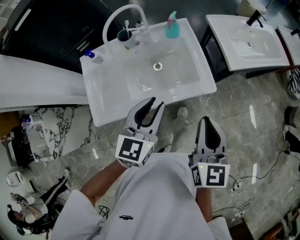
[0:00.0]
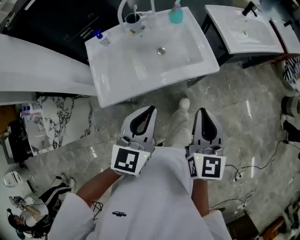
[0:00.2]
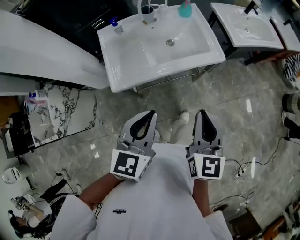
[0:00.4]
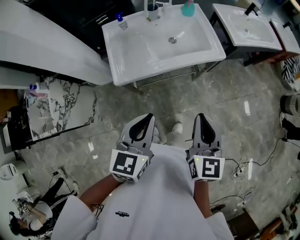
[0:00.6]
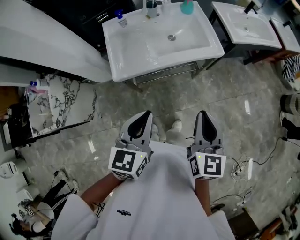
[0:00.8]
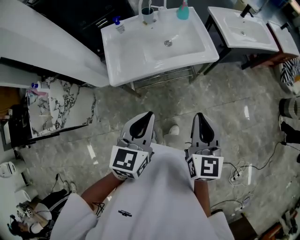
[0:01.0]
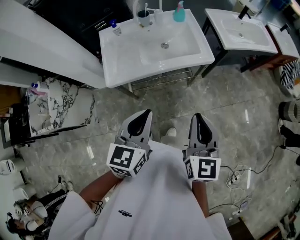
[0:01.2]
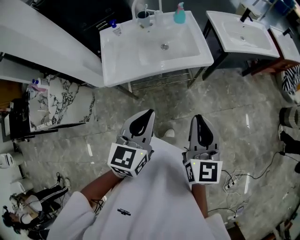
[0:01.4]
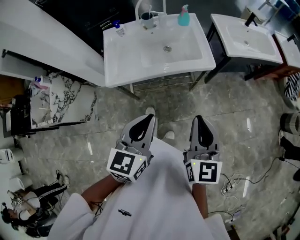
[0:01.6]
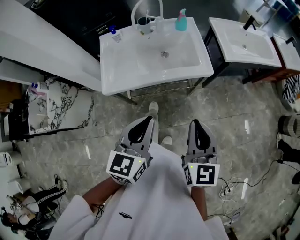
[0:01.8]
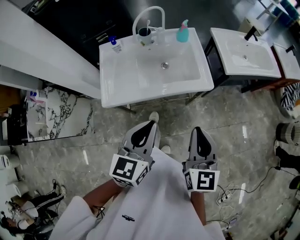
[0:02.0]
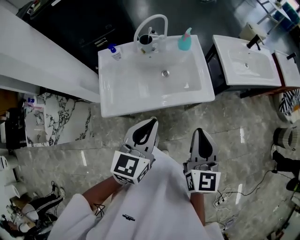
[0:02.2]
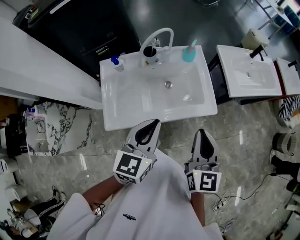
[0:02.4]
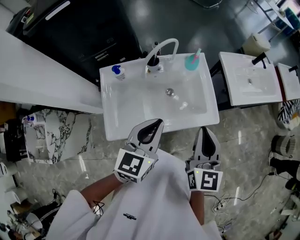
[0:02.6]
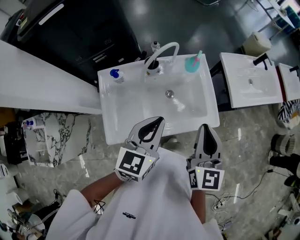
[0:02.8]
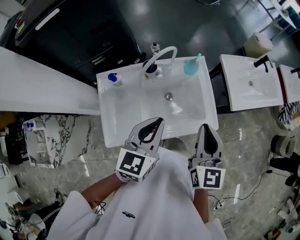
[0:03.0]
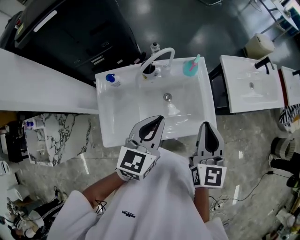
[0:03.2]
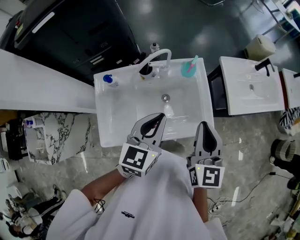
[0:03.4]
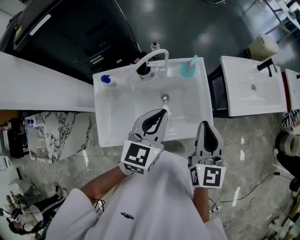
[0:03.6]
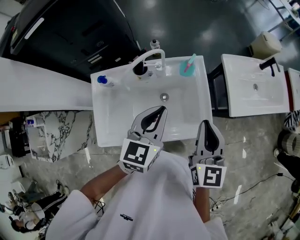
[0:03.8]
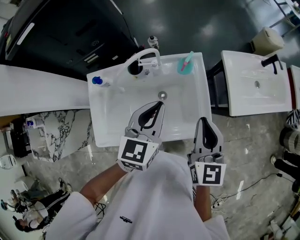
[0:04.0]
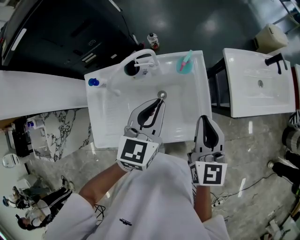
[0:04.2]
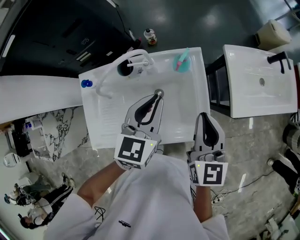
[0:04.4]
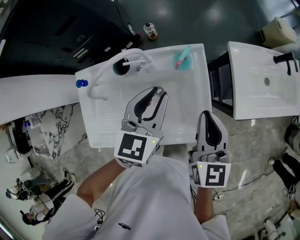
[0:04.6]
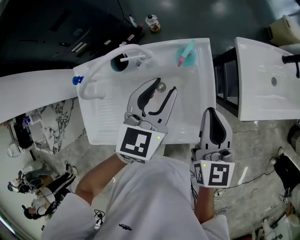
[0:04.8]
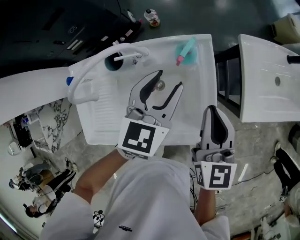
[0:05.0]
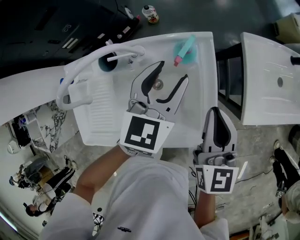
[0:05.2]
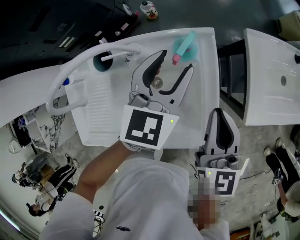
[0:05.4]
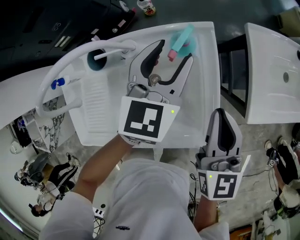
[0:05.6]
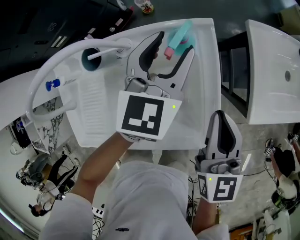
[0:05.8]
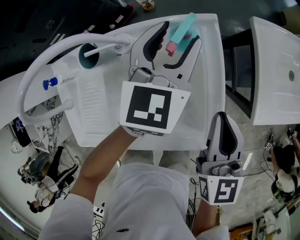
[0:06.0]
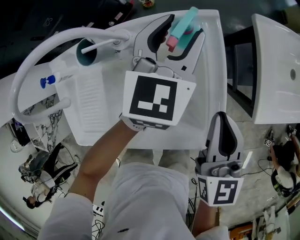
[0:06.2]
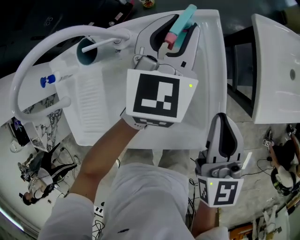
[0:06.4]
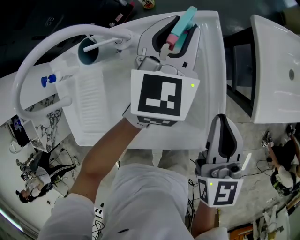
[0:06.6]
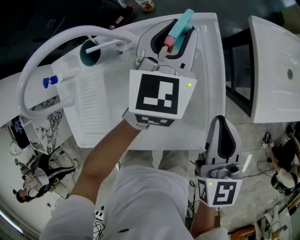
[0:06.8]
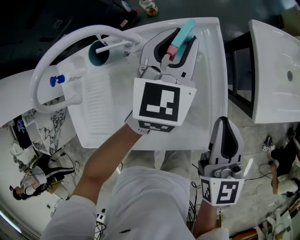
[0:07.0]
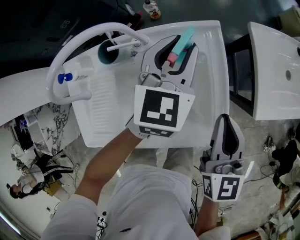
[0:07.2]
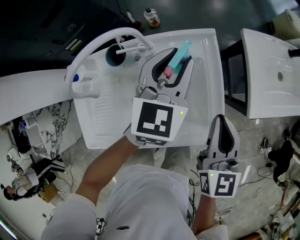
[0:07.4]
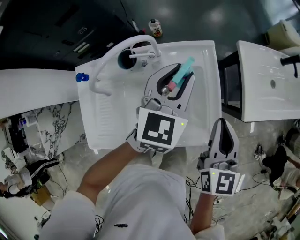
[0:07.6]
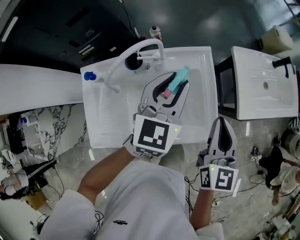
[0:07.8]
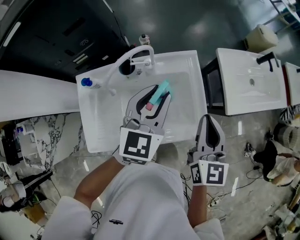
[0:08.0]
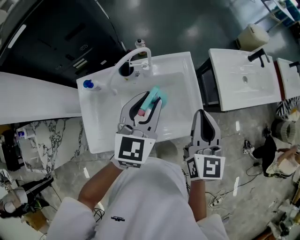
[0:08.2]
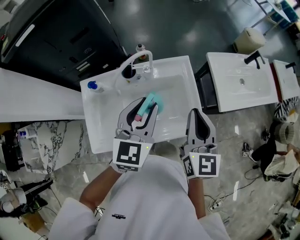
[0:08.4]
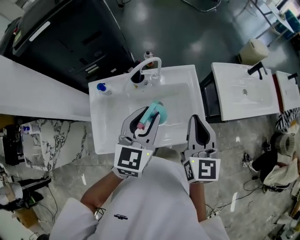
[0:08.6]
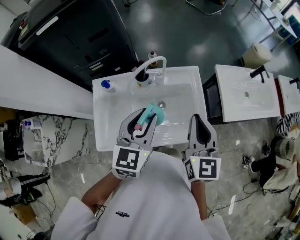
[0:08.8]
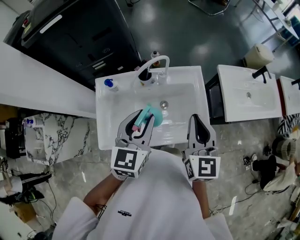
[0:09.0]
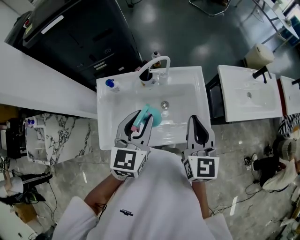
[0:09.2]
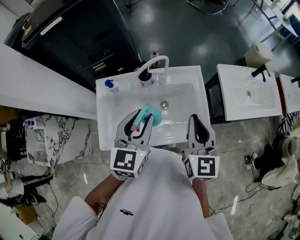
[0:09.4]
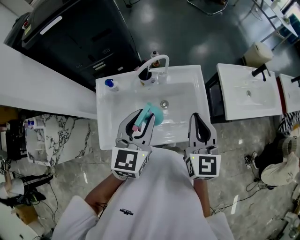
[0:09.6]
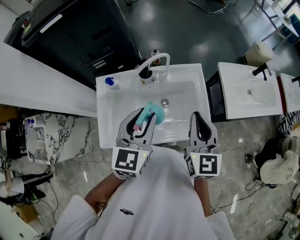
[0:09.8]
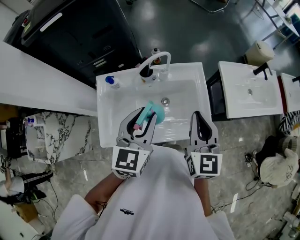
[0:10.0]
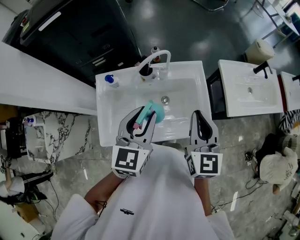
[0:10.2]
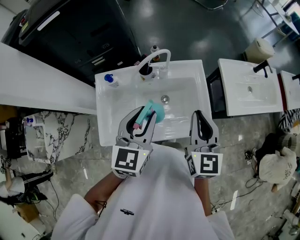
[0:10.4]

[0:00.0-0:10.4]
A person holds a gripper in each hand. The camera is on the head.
0:00.0 to 0:01.4: The two grippers go approximately 25 cm backward. The left gripper closes its fingers.
0:01.4 to 0:03.0: Both grippers move forward, approximately 35 cm.
0:03.0 to 0:04.4: The right gripper shifts some 20 cm forward, to the right and downward. Meanwhile the left gripper goes about 20 cm forward and to the right.
0:04.4 to 0:06.0: The left gripper moves forward and downward, about 20 cm, and opens its fingers. The right gripper heads downward, covering about 15 cm.
0:06.0 to 0:07.4: The right gripper shifts by about 5 cm, while the left gripper is displaced backward by some 5 cm, and closes its fingers.
0:07.4 to 0:09.0: The right gripper travels upward, to the left and backward by approximately 20 cm, while the left gripper goes approximately 30 cm backward, upward and to the left.
0:09.0 to 0:10.4: Neither gripper changes place.

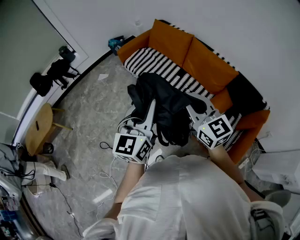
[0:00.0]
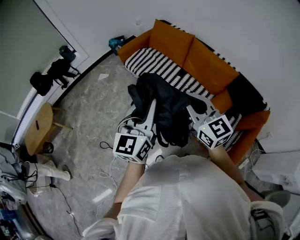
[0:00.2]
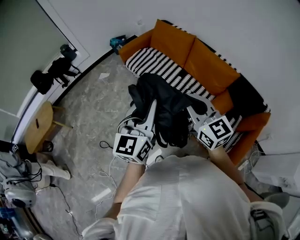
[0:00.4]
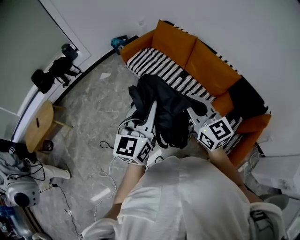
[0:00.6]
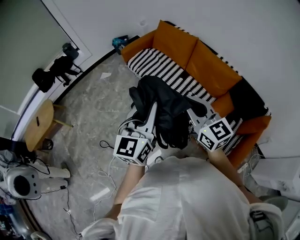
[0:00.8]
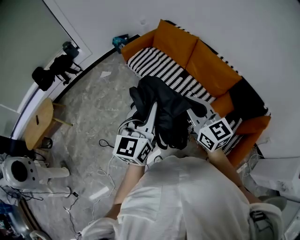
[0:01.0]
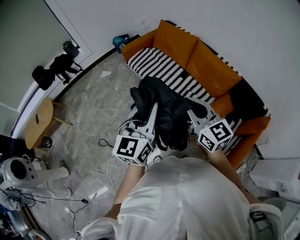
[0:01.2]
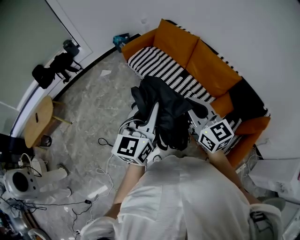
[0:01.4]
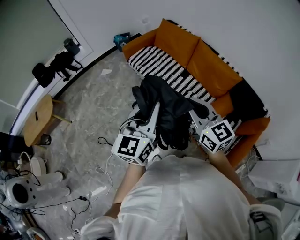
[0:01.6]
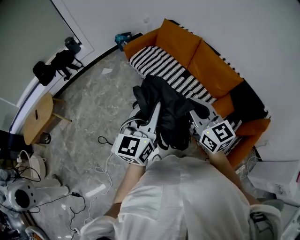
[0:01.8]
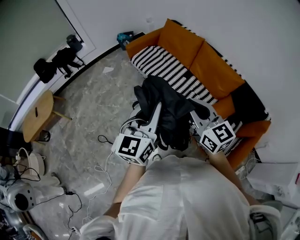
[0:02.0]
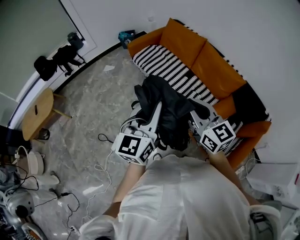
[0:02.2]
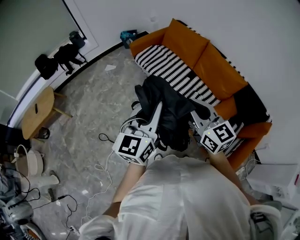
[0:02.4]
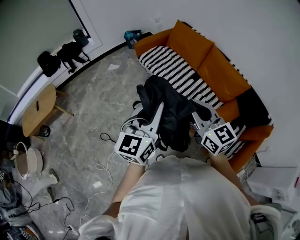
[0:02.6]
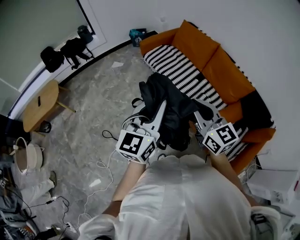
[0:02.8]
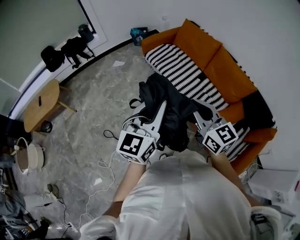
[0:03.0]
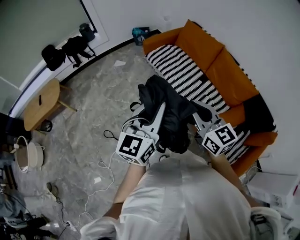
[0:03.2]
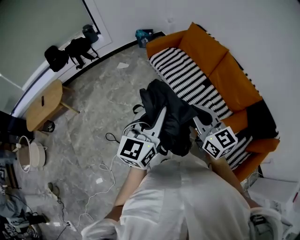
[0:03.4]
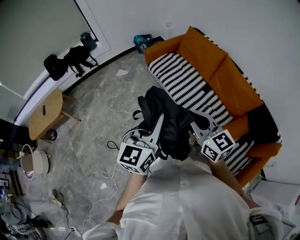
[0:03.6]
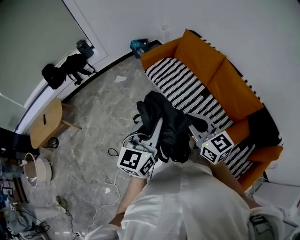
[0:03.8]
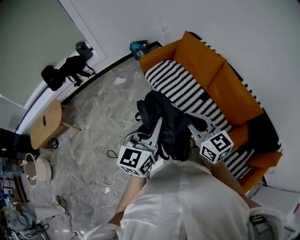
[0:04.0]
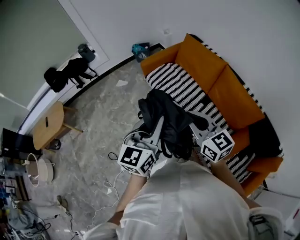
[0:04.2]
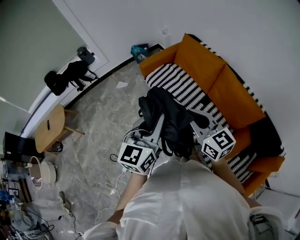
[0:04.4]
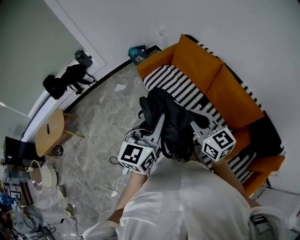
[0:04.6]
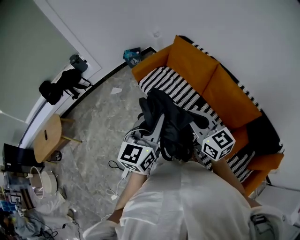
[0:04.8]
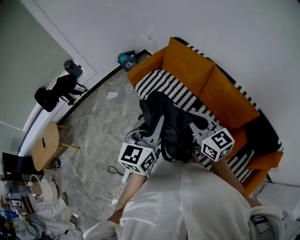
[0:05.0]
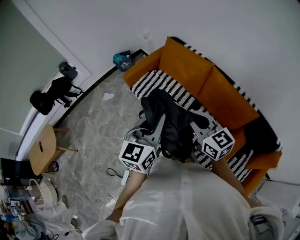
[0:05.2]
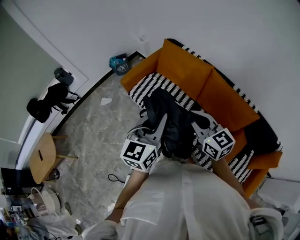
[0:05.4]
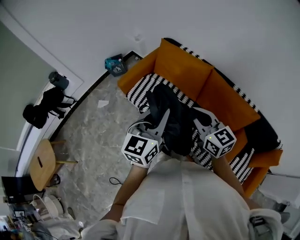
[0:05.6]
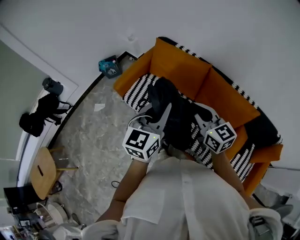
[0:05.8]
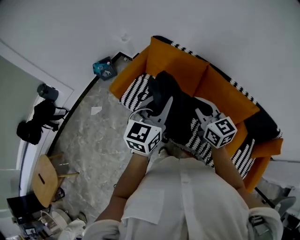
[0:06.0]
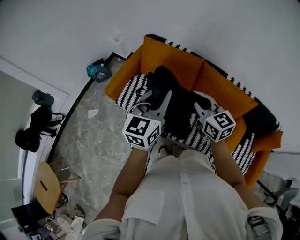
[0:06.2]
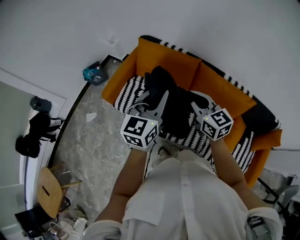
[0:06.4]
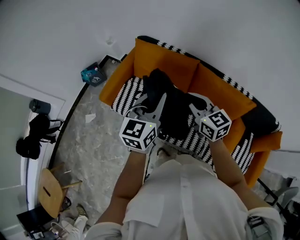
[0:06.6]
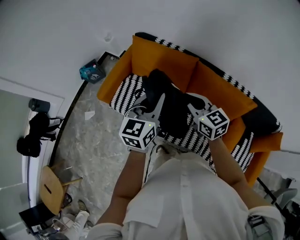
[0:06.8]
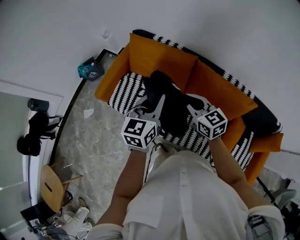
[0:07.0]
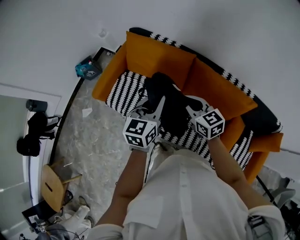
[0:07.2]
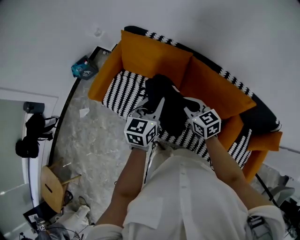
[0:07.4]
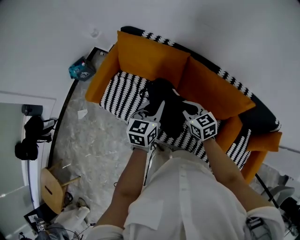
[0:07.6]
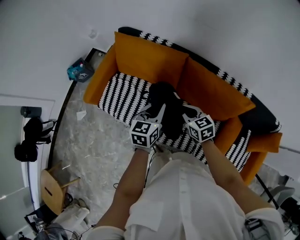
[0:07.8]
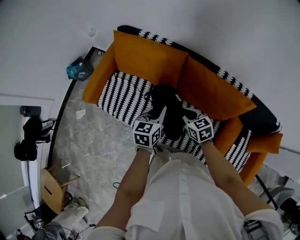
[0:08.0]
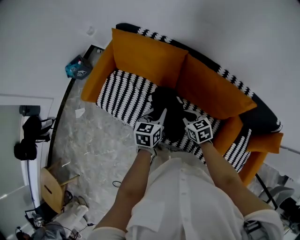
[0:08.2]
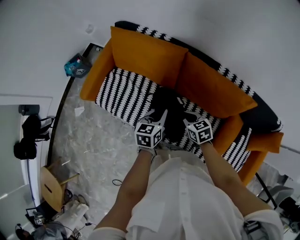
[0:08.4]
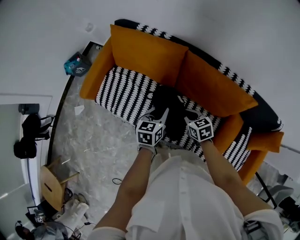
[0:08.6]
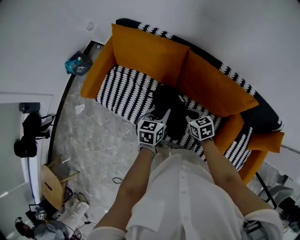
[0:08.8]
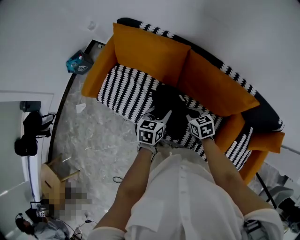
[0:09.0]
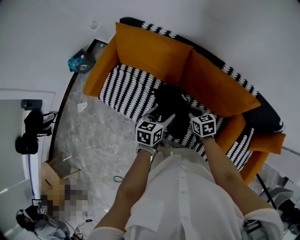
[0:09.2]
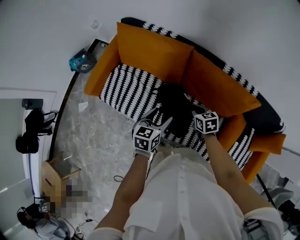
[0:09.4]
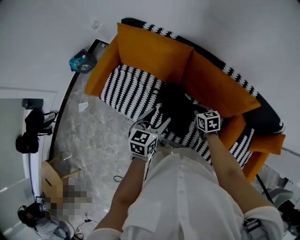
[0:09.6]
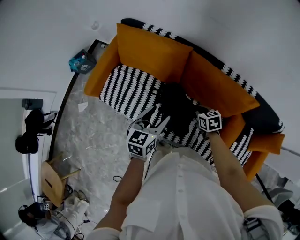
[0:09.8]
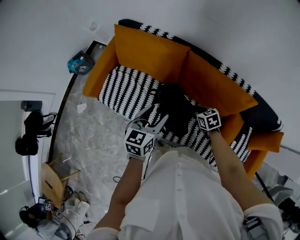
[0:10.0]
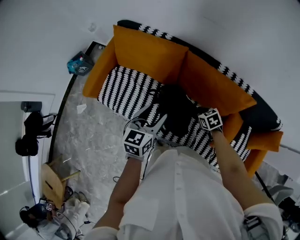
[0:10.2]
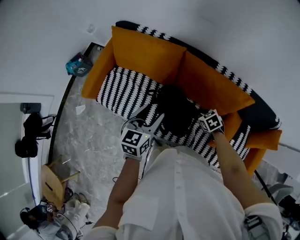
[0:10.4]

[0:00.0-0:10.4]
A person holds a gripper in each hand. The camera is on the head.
0:00.0 to 0:01.4: The grippers move only a little.
0:01.4 to 0:03.0: The grippers both shift to the left by some 10 cm.
0:03.0 to 0:04.4: The two grippers go roughly 25 cm forward and to the right.
0:04.4 to 0:06.0: The right gripper ends up approximately 25 cm from where it was, and turns by roughly 30 degrees. Meanwhile the left gripper changes place by approximately 30 cm, and turns by some 30 degrees.
0:06.0 to 0:07.4: The grippers both shift downward, forward and to the right by about 20 cm.
0:07.4 to 0:09.0: Both grippers travel together downward, some 15 cm. The right gripper swivels some 20 degrees. Meanwhile the left gripper opens up.
0:09.0 to 0:10.4: The right gripper moves to the right, approximately 10 cm, and turns by about 20 degrees, while the left gripper goes about 10 cm upward.

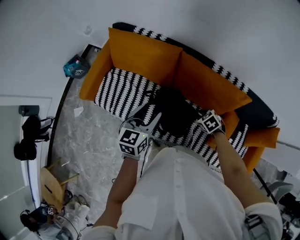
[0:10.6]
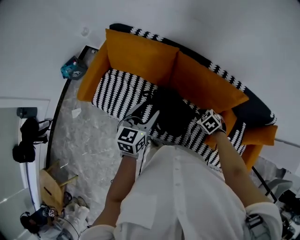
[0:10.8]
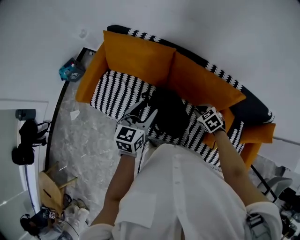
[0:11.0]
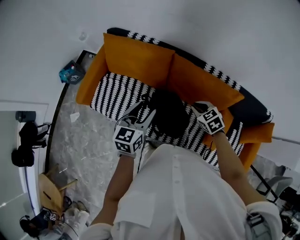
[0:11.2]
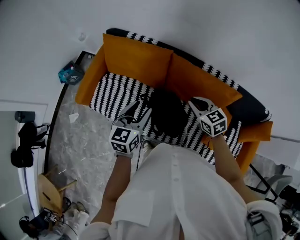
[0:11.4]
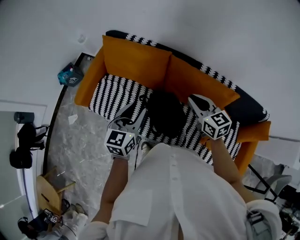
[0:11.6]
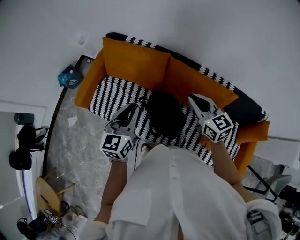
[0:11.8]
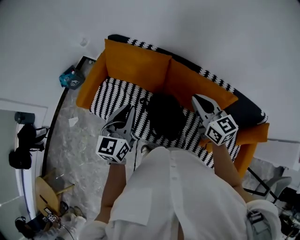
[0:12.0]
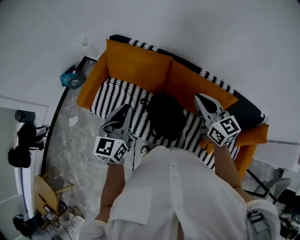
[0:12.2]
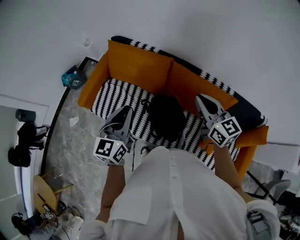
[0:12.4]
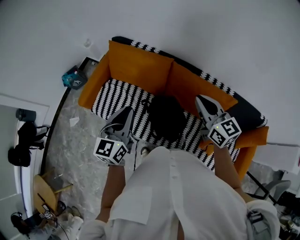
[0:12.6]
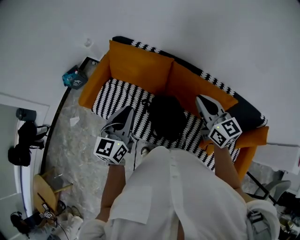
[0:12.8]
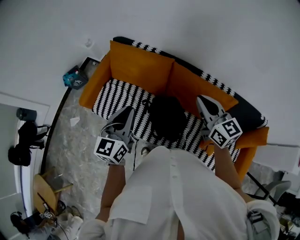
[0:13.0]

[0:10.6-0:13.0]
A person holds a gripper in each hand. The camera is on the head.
0:10.6 to 0:11.8: The right gripper goes approximately 30 cm upward, and points its fingers roughly 50 degrees further upward. Meanwhile the left gripper goes roughly 10 cm upward, and closes its fingers.
0:11.8 to 0:13.0: The right gripper moves upward, roughly 5 cm. The left gripper shifts by roughly 5 cm.
